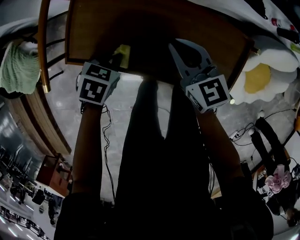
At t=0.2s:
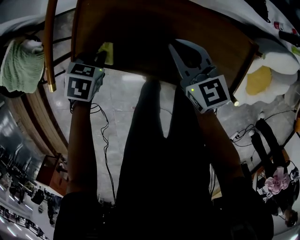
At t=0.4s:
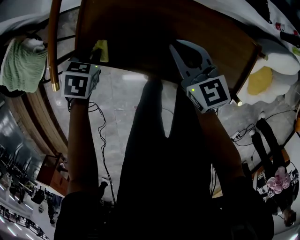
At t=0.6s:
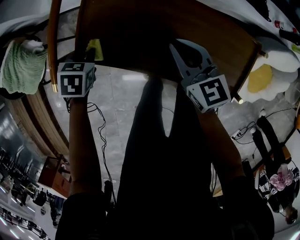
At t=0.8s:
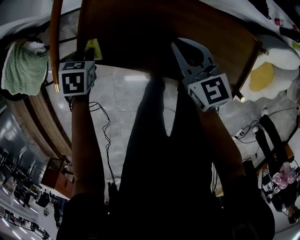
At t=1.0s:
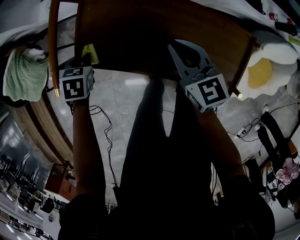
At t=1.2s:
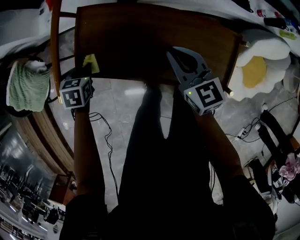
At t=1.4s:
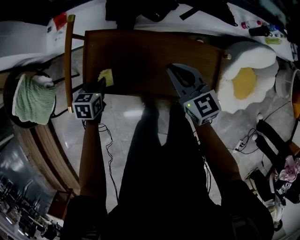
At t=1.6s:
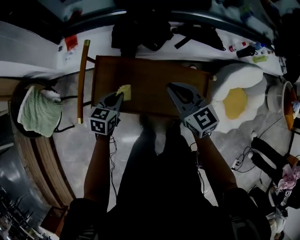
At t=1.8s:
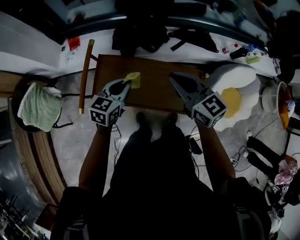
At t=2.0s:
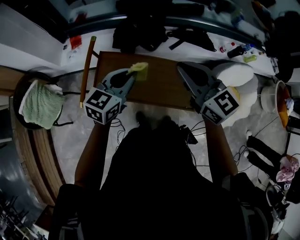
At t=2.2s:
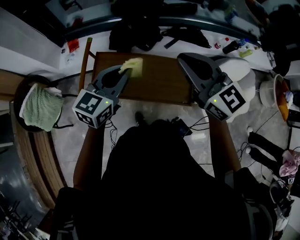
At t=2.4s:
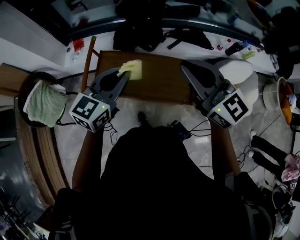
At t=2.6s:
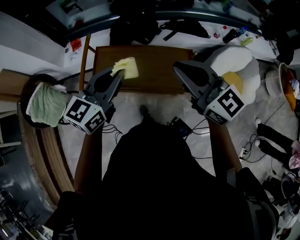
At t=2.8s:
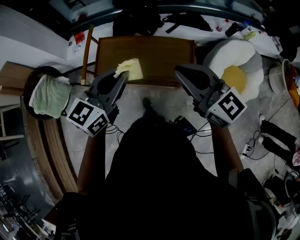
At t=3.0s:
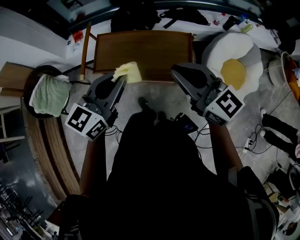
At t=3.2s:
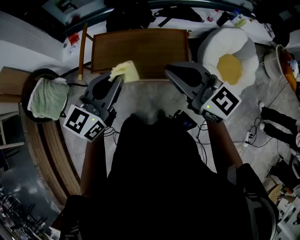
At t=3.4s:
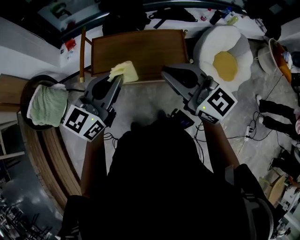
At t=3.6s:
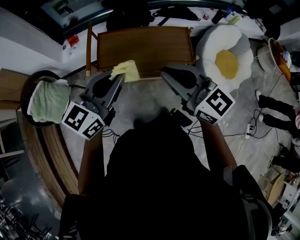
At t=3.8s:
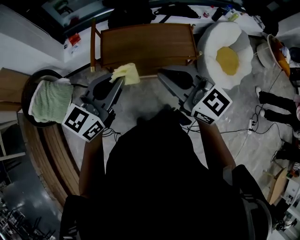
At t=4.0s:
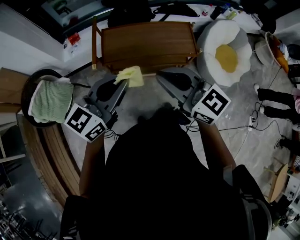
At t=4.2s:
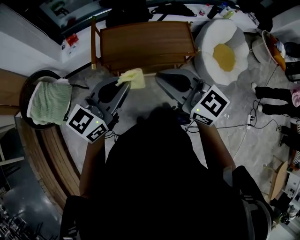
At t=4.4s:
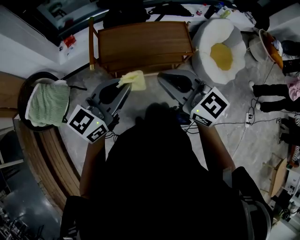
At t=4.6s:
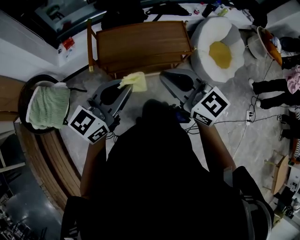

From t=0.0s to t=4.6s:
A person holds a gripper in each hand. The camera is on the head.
From t=0.0s to t=1.6s: The left gripper is displaced upward and forward by some 15 cm, travels to the left and back again, roughly 15 cm each way, and turns by some 30 degrees; the right gripper goes some 15 cm upward.
From t=1.6s to t=3.0s: The right gripper heads backward and upward, covering about 30 cm, while the left gripper goes some 40 cm upward and backward, and angles its fingers upward, by approximately 30 degrees.
From t=3.0s to t=4.6s: The grippers both shift to the left and backward by some 20 cm. The left gripper rotates roughly 20 degrees.

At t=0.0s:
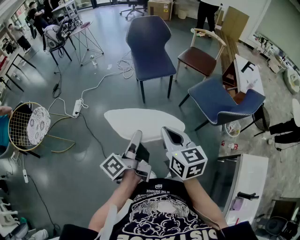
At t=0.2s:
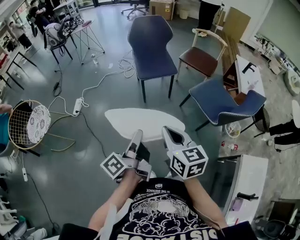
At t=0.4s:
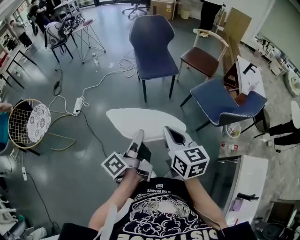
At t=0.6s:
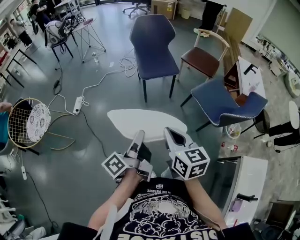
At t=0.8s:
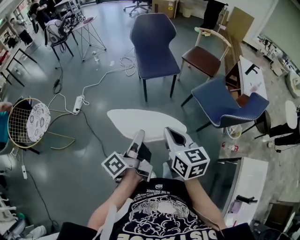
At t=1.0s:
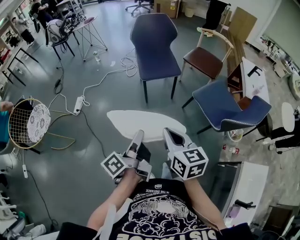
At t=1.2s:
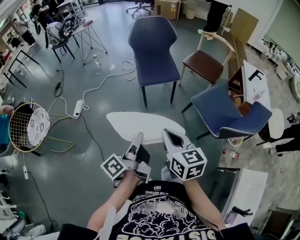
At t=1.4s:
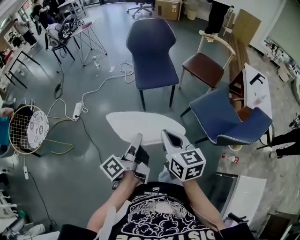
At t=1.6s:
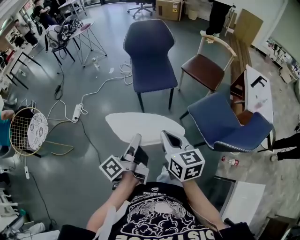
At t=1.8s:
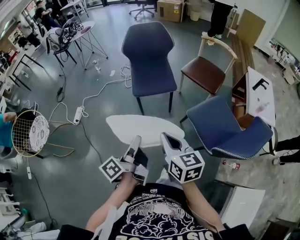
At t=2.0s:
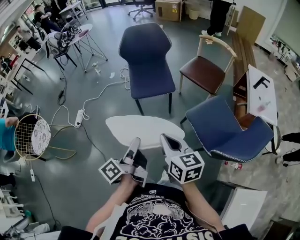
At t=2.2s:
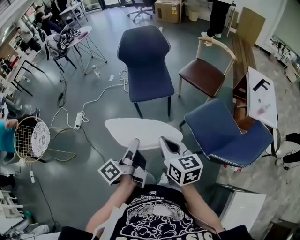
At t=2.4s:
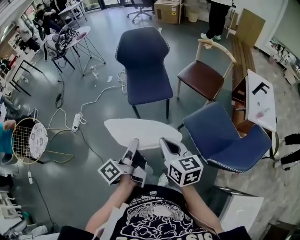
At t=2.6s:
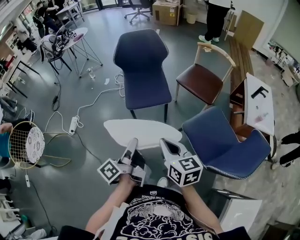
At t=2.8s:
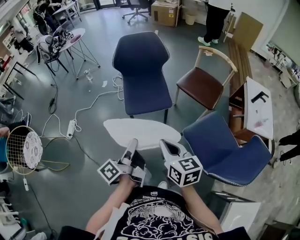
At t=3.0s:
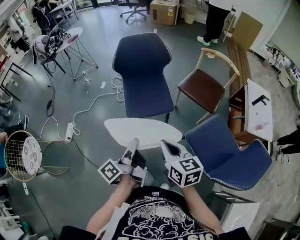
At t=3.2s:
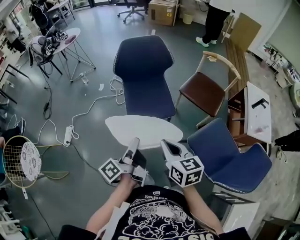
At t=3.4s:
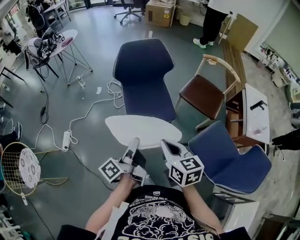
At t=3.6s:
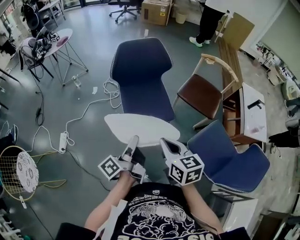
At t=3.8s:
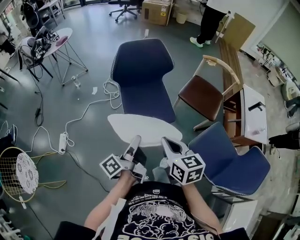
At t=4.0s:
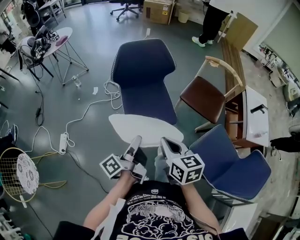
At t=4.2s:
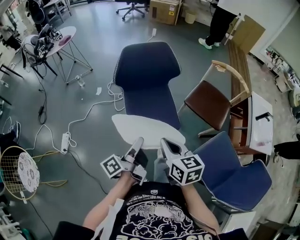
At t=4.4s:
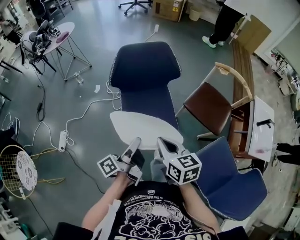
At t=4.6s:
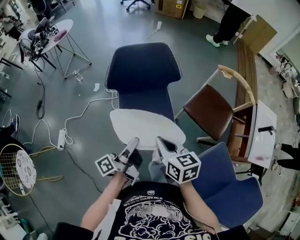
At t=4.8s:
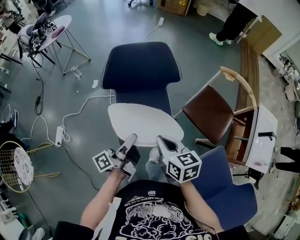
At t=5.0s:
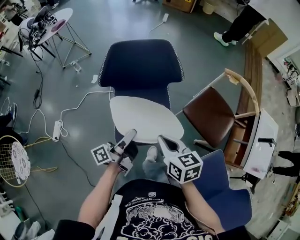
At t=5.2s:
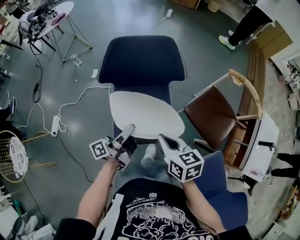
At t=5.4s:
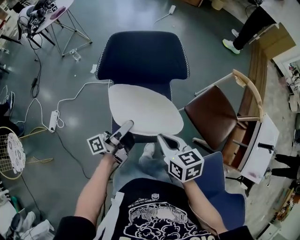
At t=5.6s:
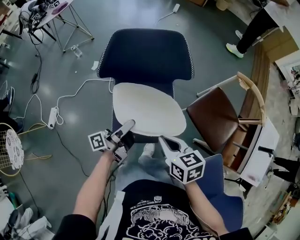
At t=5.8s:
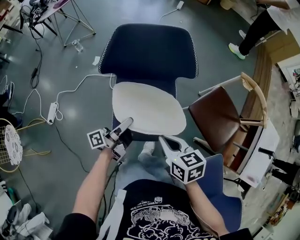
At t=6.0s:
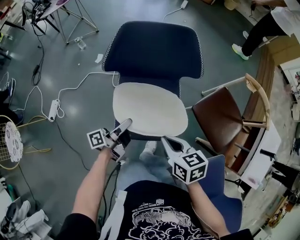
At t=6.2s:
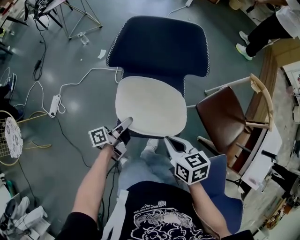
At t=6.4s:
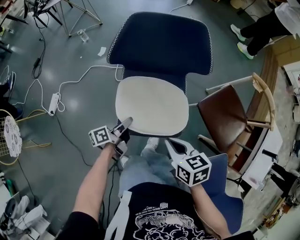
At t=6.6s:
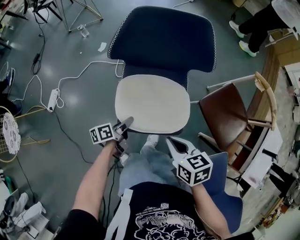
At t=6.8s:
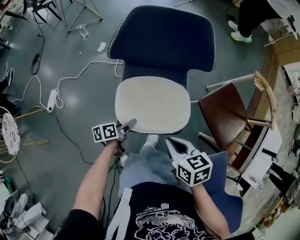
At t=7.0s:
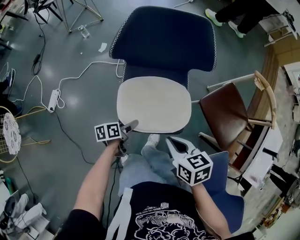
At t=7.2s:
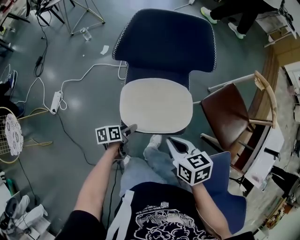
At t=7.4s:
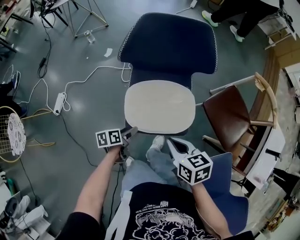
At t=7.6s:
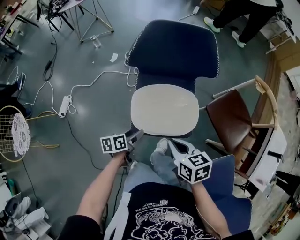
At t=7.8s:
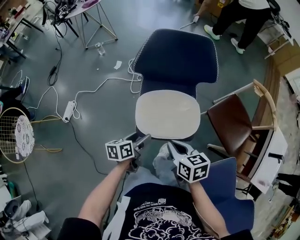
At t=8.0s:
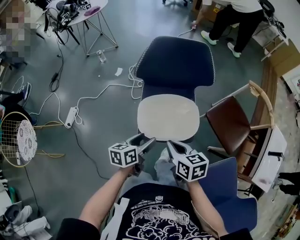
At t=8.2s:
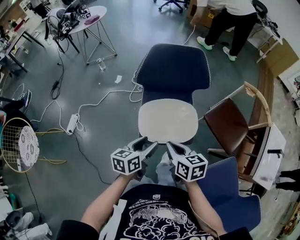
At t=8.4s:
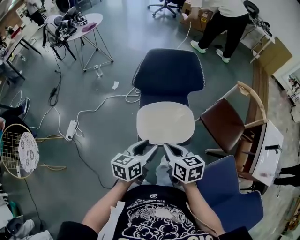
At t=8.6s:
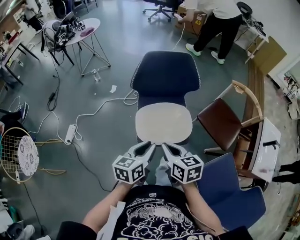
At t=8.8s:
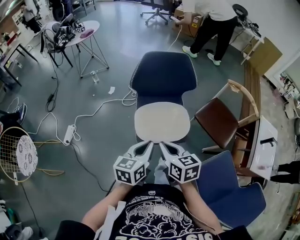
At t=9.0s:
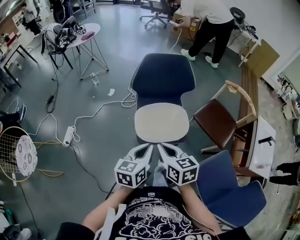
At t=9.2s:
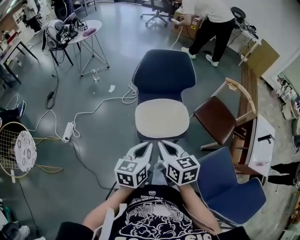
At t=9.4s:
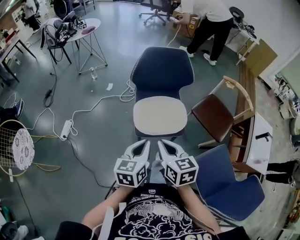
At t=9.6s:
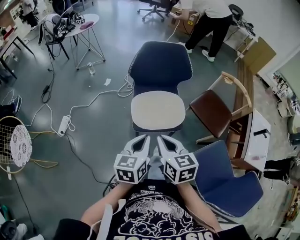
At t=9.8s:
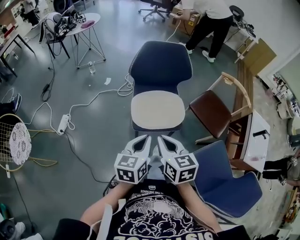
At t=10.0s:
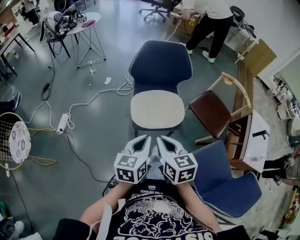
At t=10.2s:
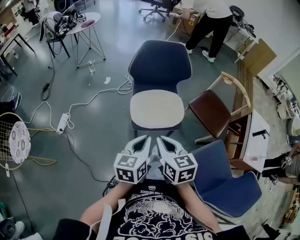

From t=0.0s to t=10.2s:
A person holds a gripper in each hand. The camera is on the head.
From t=0.0s to t=1.4s: The right gripper ends up about 15 cm from where it was.
From t=1.4s to t=3.0s: The right gripper ends up some 25 cm from where it was.
From t=3.0s to t=4.4s: The right gripper ends up roughly 25 cm from where it was.
From t=4.4s to t=5.8s: The right gripper changes place by approximately 15 cm, and rotates about 20 degrees.
From t=5.8s to t=7.2s: The right gripper moves approximately 5 cm.
From t=7.2s to t=8.8s: The right gripper moves upward, about 10 cm.
From t=8.8s to t=10.2s: The right gripper ends up roughly 10 cm from where it was.

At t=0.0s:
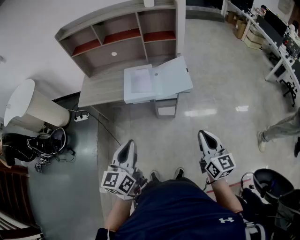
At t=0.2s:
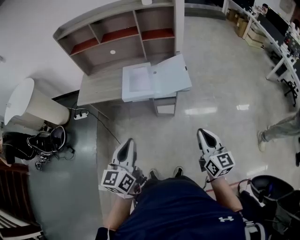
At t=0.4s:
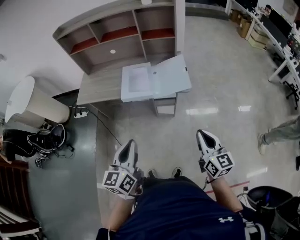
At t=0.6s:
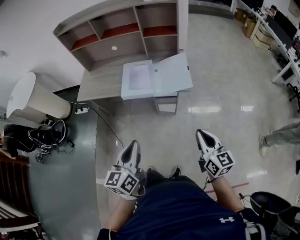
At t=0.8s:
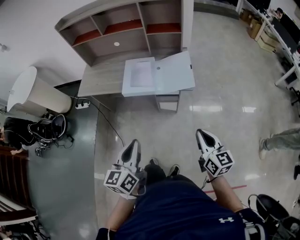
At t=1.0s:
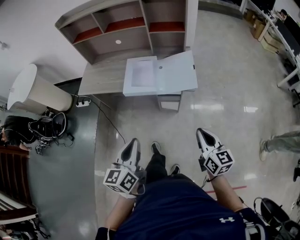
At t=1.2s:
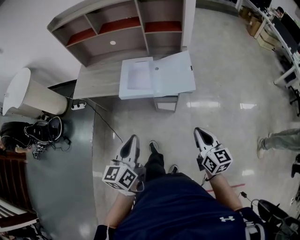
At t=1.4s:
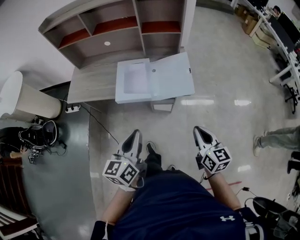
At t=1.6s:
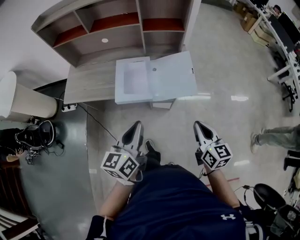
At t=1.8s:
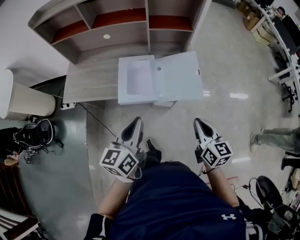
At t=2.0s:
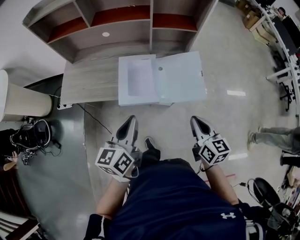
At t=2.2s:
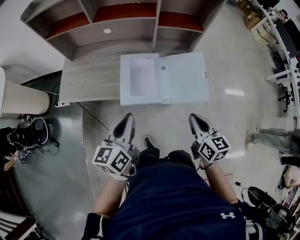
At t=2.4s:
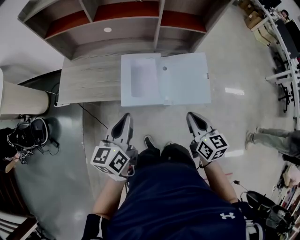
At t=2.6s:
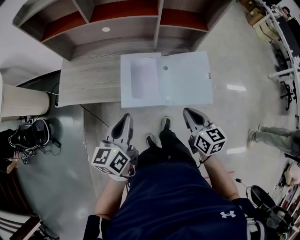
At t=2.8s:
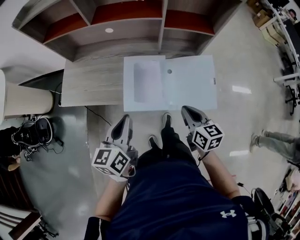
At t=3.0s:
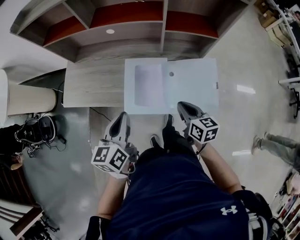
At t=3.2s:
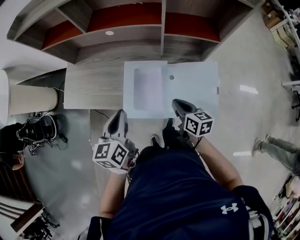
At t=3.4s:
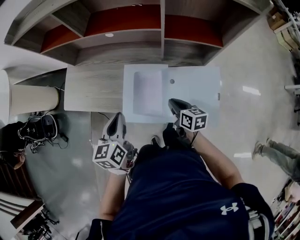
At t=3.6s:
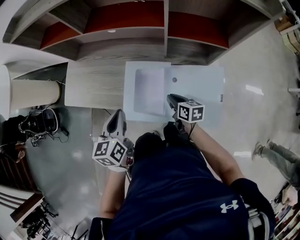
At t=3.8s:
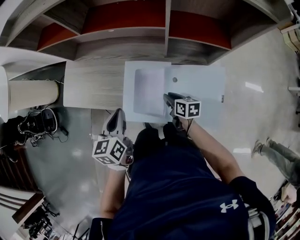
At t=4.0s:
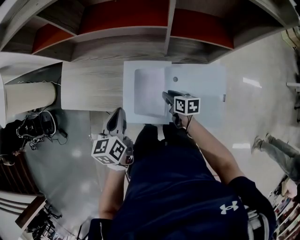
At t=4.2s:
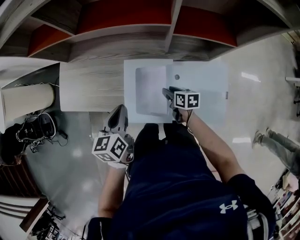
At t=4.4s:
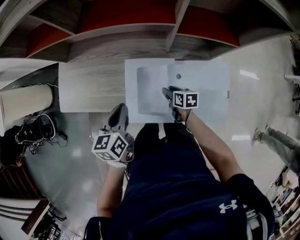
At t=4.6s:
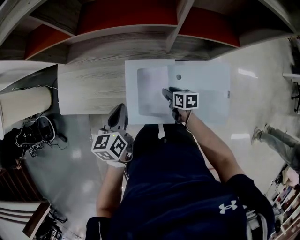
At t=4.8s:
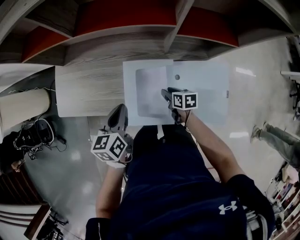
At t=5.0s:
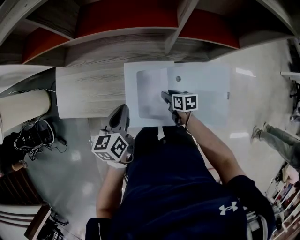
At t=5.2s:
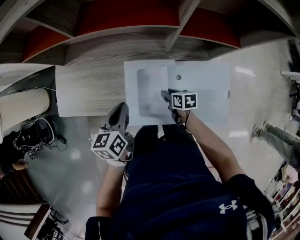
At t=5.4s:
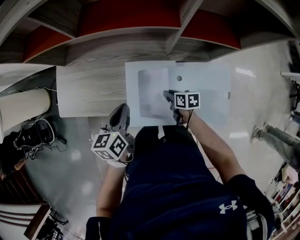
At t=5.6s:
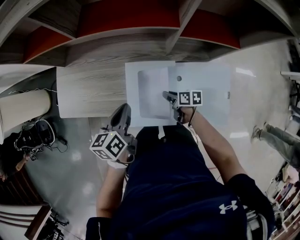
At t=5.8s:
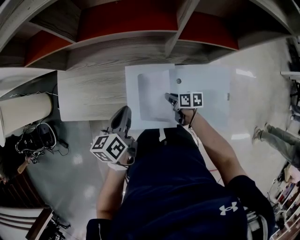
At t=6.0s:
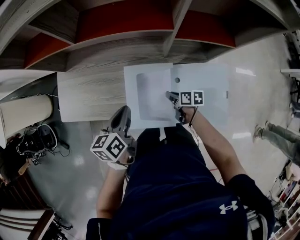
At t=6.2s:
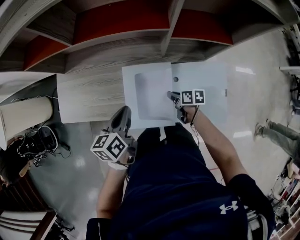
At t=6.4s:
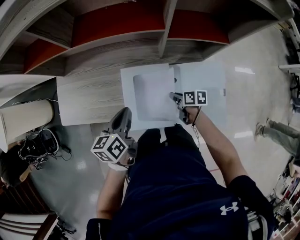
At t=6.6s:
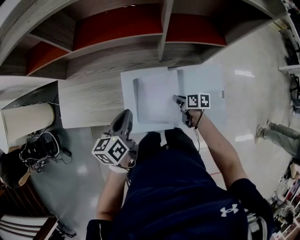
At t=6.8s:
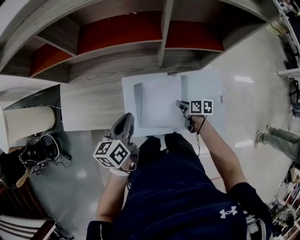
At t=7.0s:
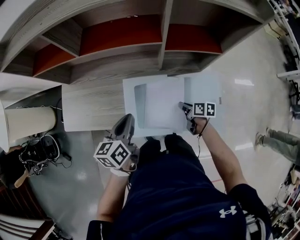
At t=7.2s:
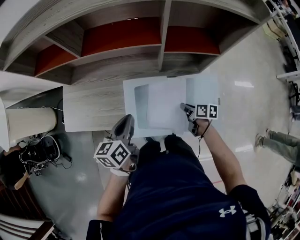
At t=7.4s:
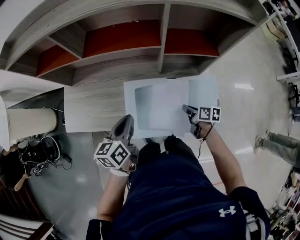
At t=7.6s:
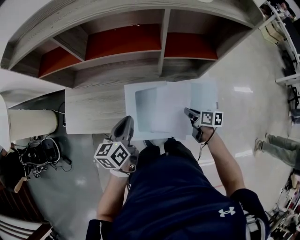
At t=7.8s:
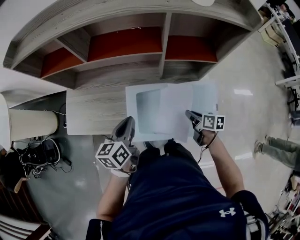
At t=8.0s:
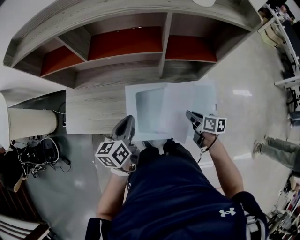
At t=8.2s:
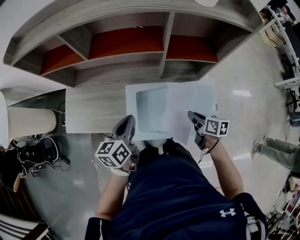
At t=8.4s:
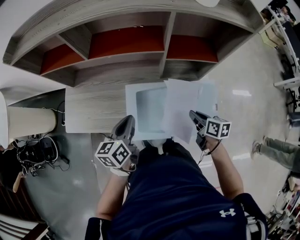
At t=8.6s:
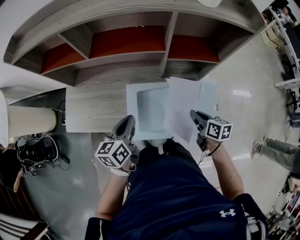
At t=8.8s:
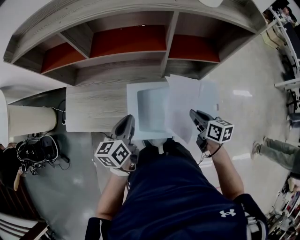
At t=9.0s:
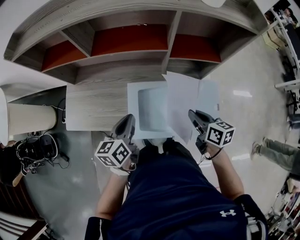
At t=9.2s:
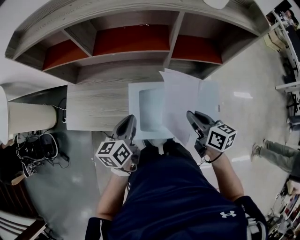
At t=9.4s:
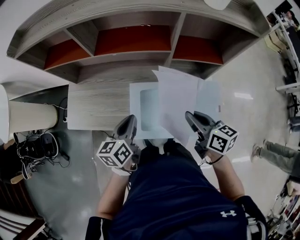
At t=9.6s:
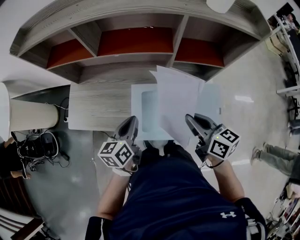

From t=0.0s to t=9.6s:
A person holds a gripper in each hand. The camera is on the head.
From t=0.0s to t=1.6s: The grippers both shift forward by about 20 cm.
From t=1.6s to t=3.2s: The right gripper travels forward, to the left and downward by roughly 35 cm, and turns by some 20 degrees. The left gripper moves forward and to the left, about 25 cm.
From t=3.2s to t=4.8s: The right gripper travels downward and forward by approximately 20 cm, rotates roughly 20 degrees, and opens its fingers. Meanwhile the left gripper shifts roughly 10 cm forward and downward.
From t=4.8s to t=6.4s: The right gripper closes.
From t=6.4s to t=8.0s: The right gripper moves upward and to the right, some 15 cm, while the left gripper goes about 5 cm upward.
From t=8.0s to t=9.6s: The right gripper is displaced upward and to the left by some 20 cm, and rotates approximately 30 degrees.
